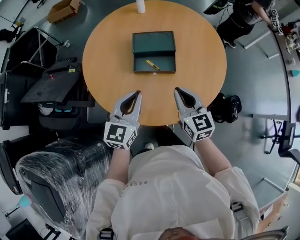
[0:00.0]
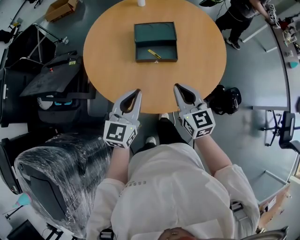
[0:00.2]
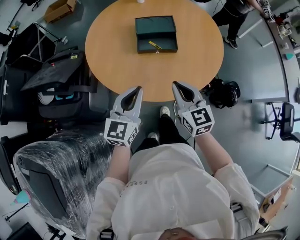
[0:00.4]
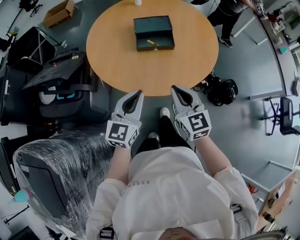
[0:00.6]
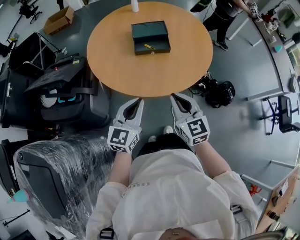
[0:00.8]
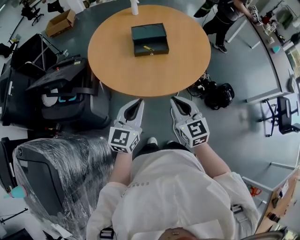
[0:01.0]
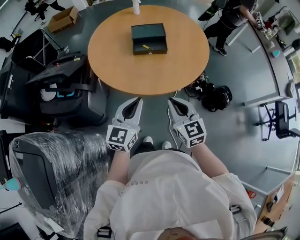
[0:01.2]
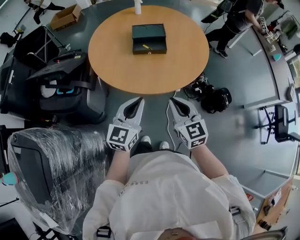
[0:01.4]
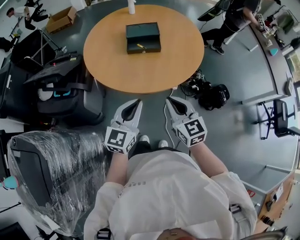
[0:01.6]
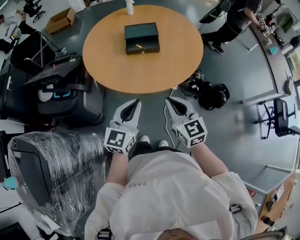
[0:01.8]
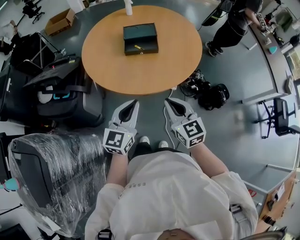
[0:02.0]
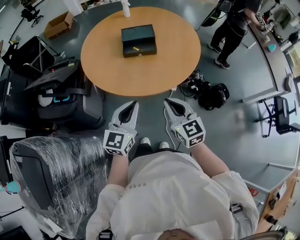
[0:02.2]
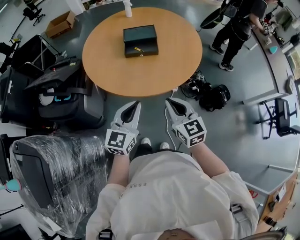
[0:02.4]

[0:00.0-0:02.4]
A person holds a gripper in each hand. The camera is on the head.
0:00.0 to 0:01.2: Both grippers travel together backward, about 25 cm.
0:01.2 to 0:02.4: The grippers make only small movements.

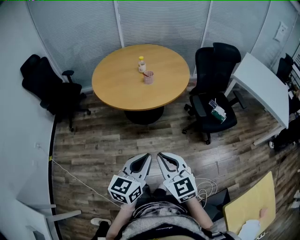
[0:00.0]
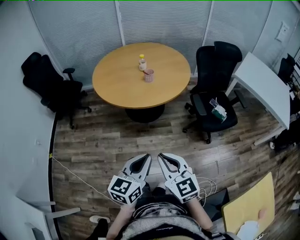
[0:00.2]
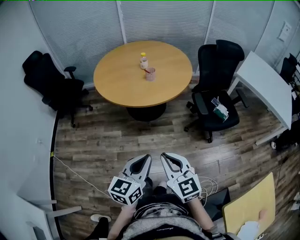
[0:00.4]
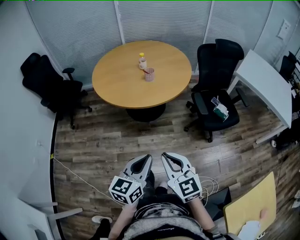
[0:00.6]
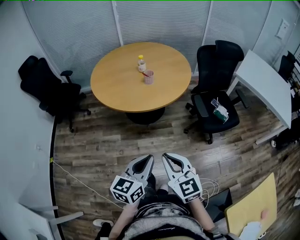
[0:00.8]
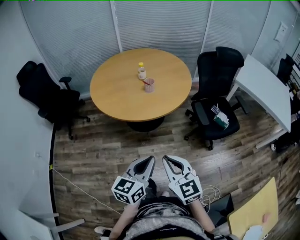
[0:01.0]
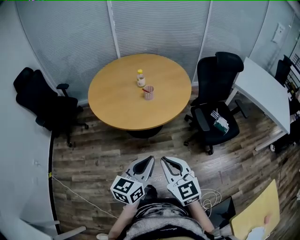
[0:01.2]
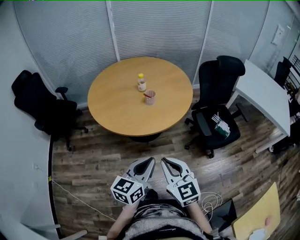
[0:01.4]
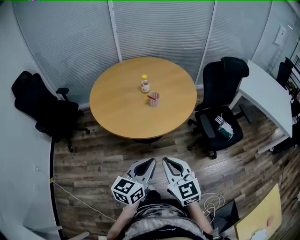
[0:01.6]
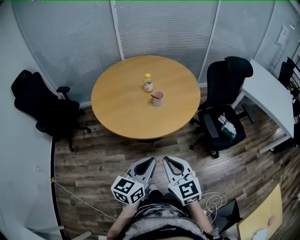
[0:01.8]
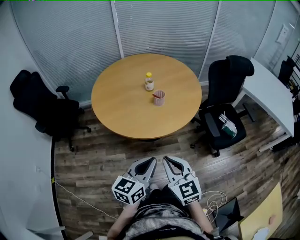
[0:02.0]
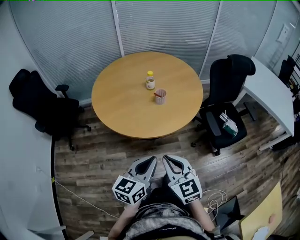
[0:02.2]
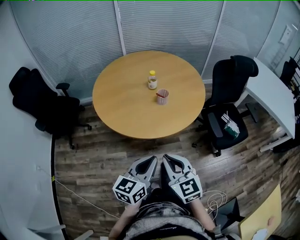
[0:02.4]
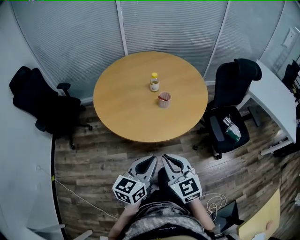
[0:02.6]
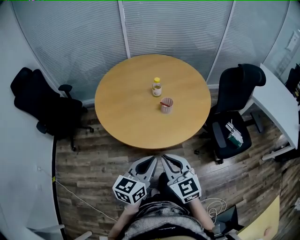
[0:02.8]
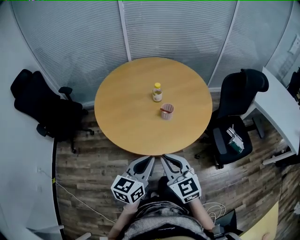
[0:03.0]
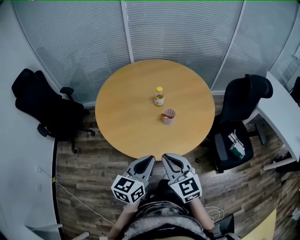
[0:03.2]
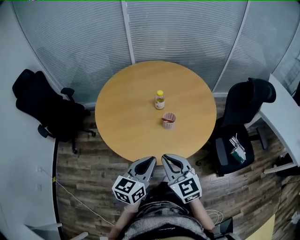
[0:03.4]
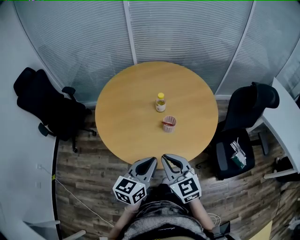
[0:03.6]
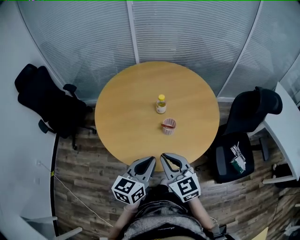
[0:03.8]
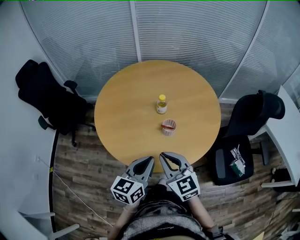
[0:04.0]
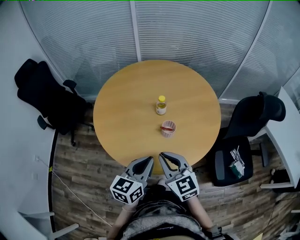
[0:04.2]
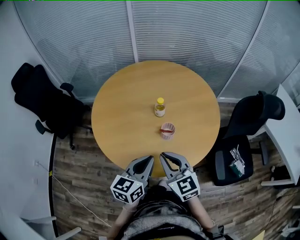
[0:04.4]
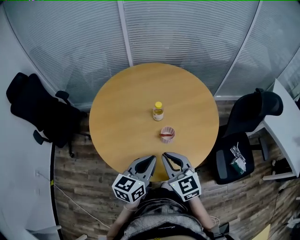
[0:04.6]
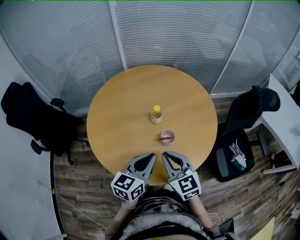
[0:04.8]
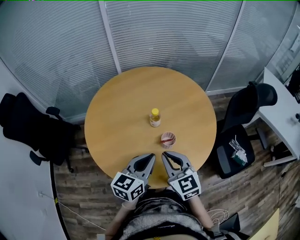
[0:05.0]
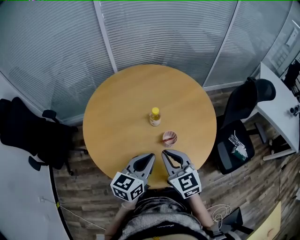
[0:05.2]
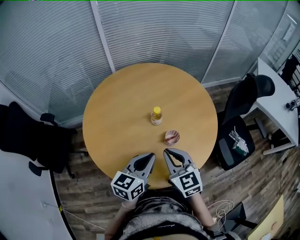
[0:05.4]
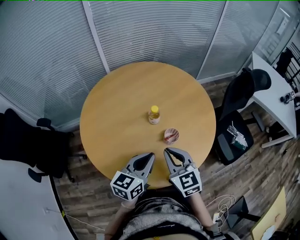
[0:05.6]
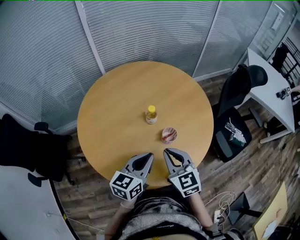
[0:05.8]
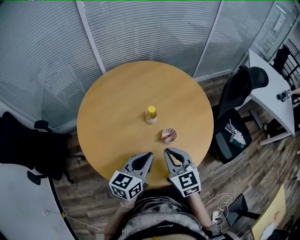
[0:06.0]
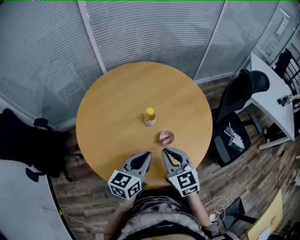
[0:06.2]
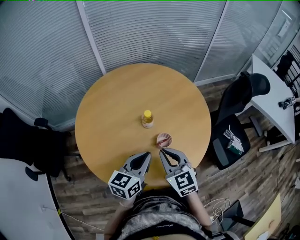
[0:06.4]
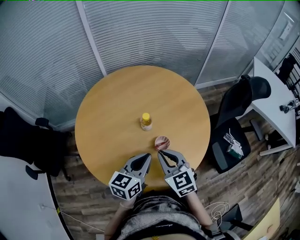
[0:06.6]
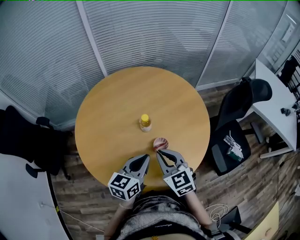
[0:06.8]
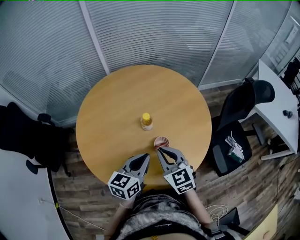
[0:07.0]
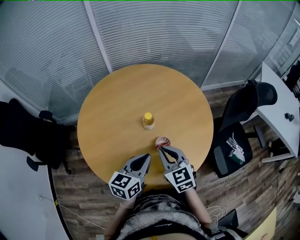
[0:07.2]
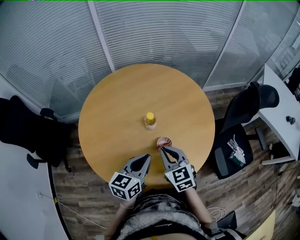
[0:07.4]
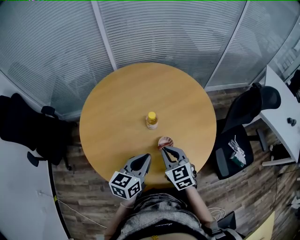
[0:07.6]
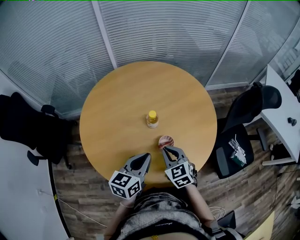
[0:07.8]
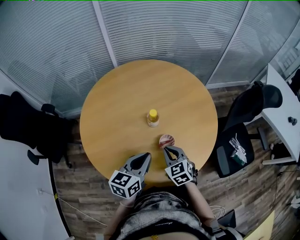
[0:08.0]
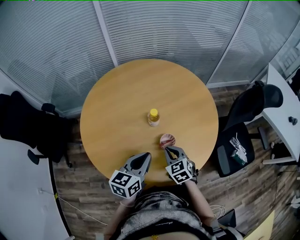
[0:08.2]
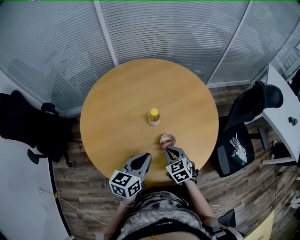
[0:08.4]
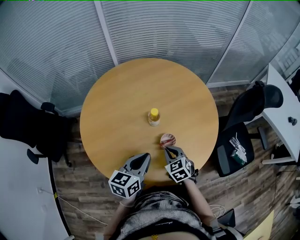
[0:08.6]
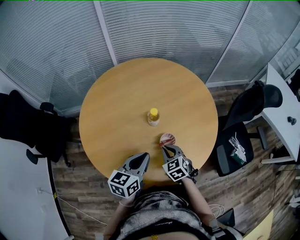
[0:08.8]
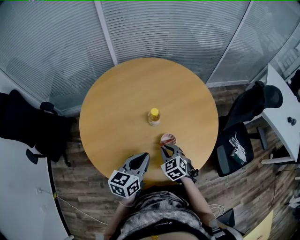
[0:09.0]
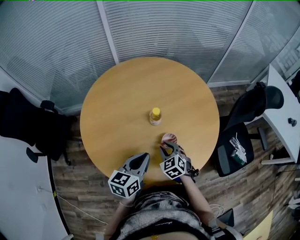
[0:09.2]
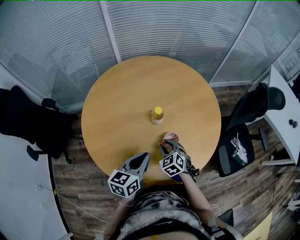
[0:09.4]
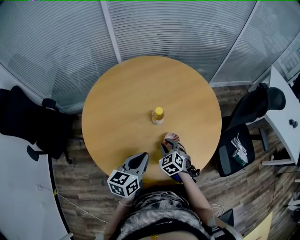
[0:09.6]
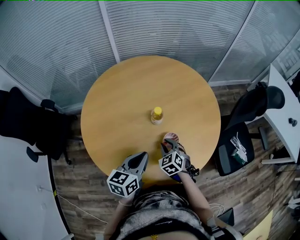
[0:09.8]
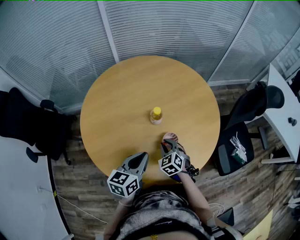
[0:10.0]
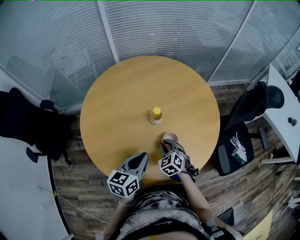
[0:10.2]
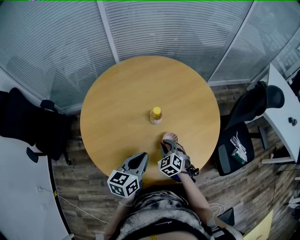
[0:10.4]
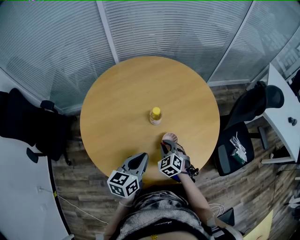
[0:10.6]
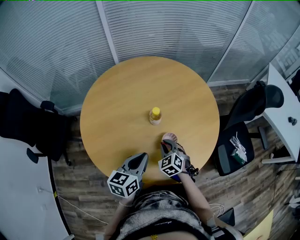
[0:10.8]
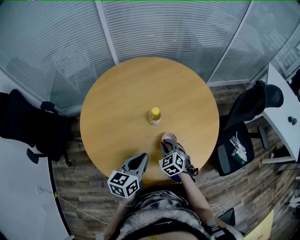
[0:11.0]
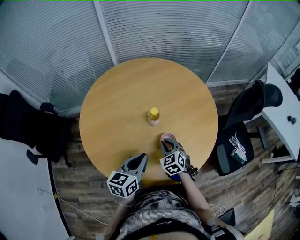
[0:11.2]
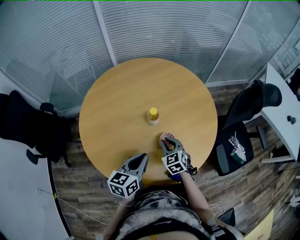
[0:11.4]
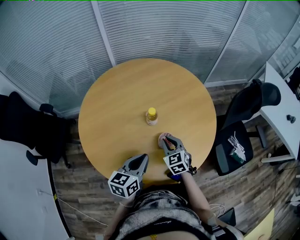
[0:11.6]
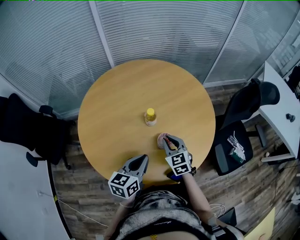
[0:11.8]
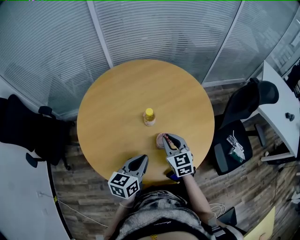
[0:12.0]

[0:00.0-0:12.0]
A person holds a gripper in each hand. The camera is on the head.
0:00.0 to 0:01.6: Both grippers travel together forward, some 20 cm.
0:01.6 to 0:03.0: The two grippers go roughly 20 cm forward and to the left.
0:03.0 to 0:04.4: Both grippers move forward, some 15 cm.
0:04.4 to 0:06.0: The right gripper ends up about 10 cm from where it was, and changes its angle by roughly 30 degrees. Meanwhile the left gripper changes place by some 10 cm, and changes its angle by some 20 degrees.
0:06.0 to 0:07.6: The left gripper ends up roughly 5 cm from where it was, while the right gripper moves forward, about 5 cm.
0:07.6 to 0:09.0: The right gripper travels downward by approximately 10 cm.
0:09.0 to 0:10.4: There are only small adjustments of the grippers.
0:10.4 to 0:12.0: The right gripper travels upward by roughly 10 cm, and turns by roughly 30 degrees.

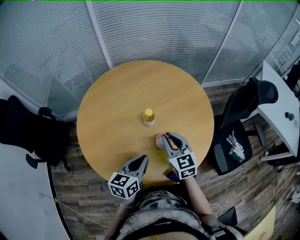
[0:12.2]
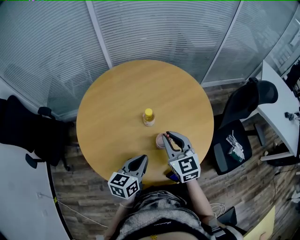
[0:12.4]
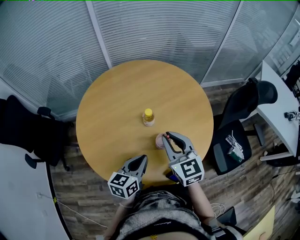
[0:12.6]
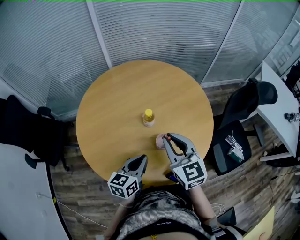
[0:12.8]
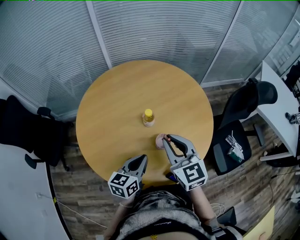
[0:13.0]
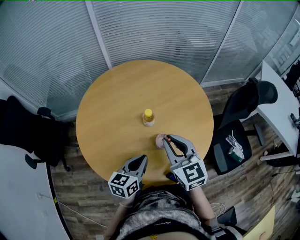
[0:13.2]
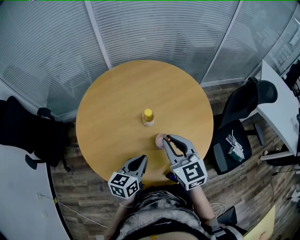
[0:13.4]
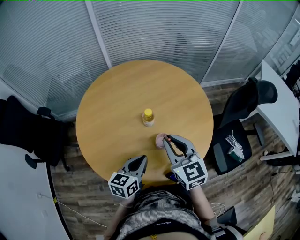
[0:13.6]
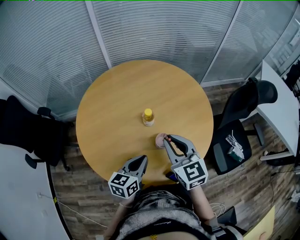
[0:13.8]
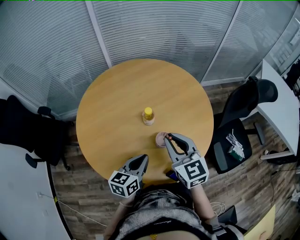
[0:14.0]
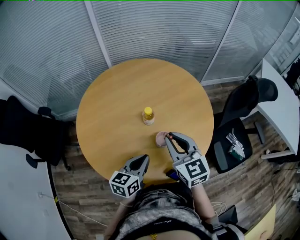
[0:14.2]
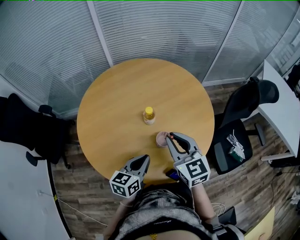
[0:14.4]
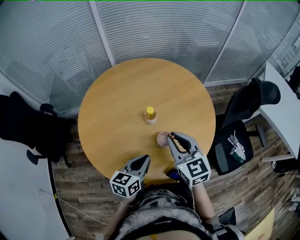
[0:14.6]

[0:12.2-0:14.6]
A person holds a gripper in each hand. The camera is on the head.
0:12.2 to 0:13.4: The right gripper is displaced upward by some 10 cm.
0:13.4 to 0:14.6: The grippers move only a little.

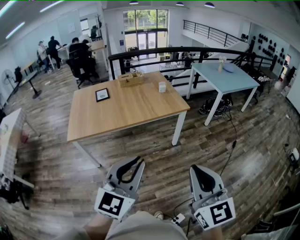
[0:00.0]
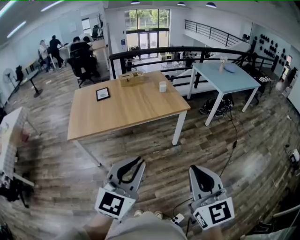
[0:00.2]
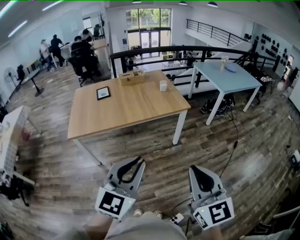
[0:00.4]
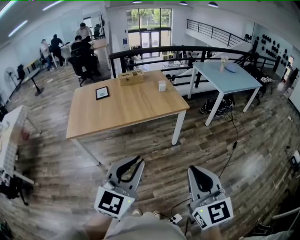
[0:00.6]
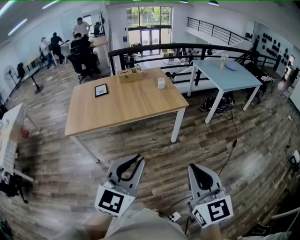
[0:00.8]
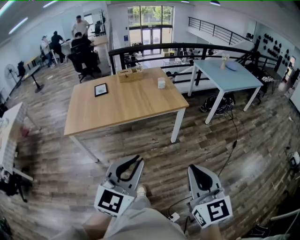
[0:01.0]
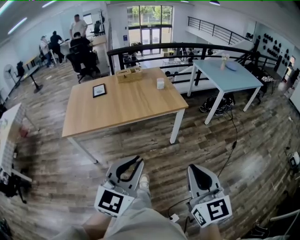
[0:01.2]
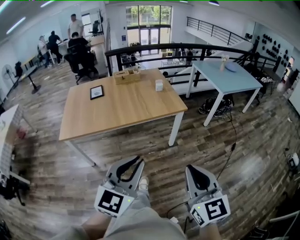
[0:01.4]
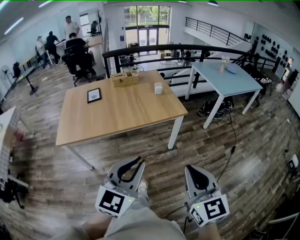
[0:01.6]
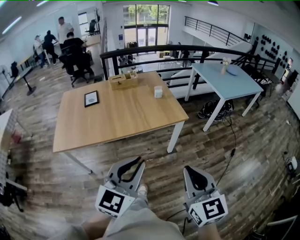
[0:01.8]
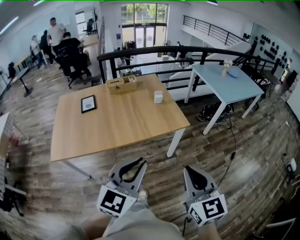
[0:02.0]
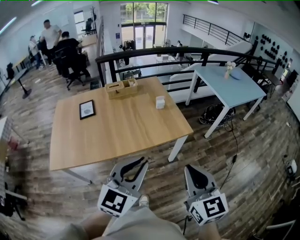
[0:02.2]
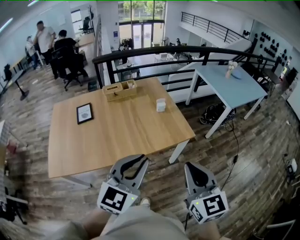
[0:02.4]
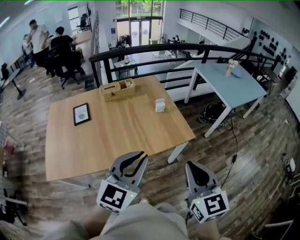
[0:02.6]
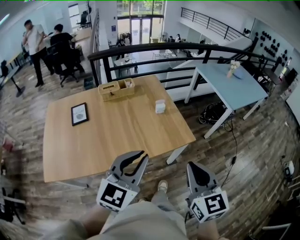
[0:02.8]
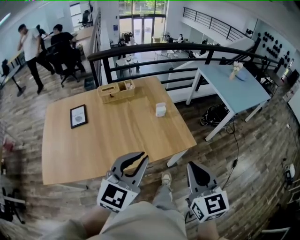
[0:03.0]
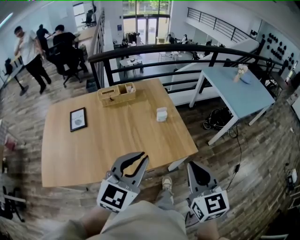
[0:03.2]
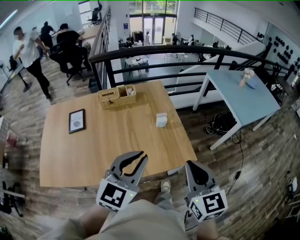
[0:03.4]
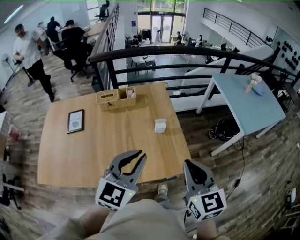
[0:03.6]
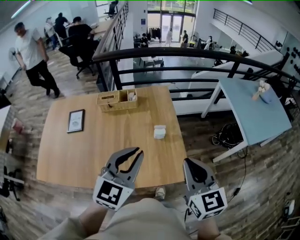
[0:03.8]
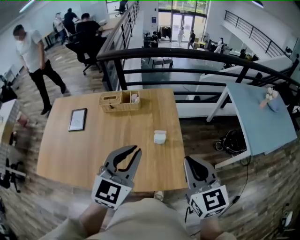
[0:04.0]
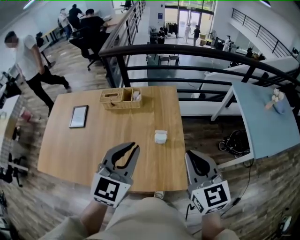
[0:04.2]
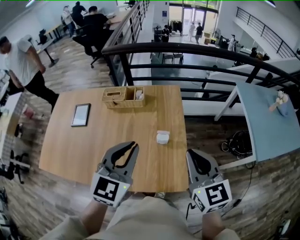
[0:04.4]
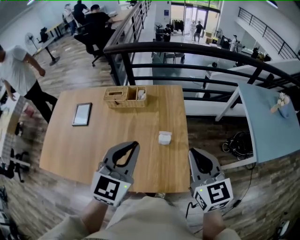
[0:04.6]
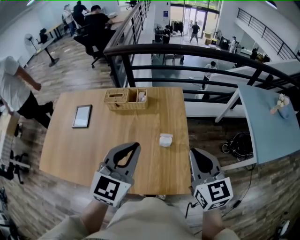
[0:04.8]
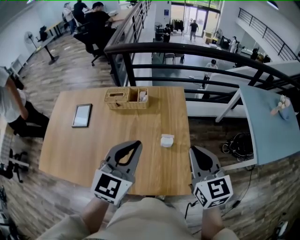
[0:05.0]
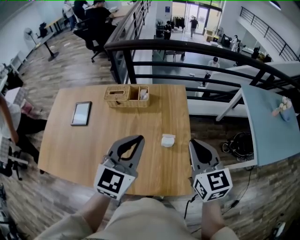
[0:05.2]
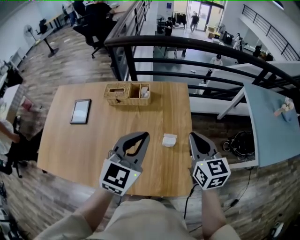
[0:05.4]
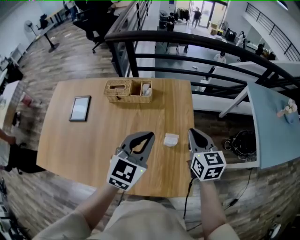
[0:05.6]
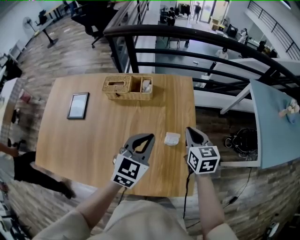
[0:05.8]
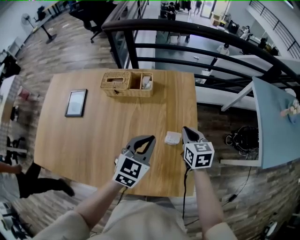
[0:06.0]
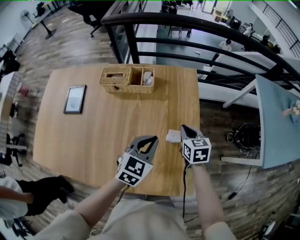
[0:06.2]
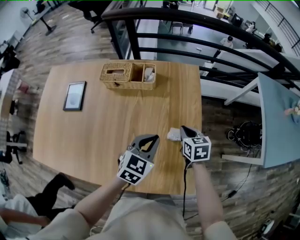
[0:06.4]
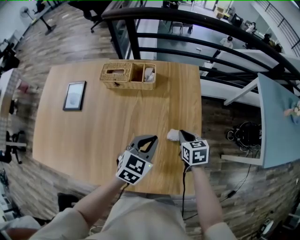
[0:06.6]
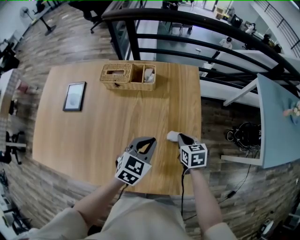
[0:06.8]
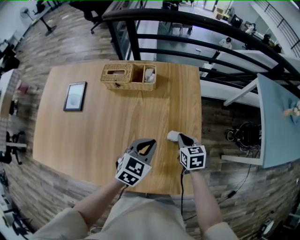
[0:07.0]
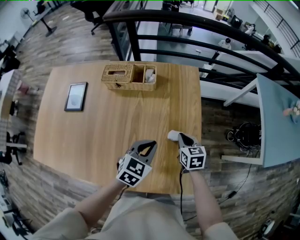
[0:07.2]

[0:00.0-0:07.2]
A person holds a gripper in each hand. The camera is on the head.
0:00.0 to 0:01.4: The two grippers go about 10 cm forward and to the right.
0:01.4 to 0:02.8: The two grippers travel together, forward, approximately 40 cm.
0:02.8 to 0:04.4: The left gripper changes place by some 35 cm, and swivels roughly 30 degrees, while the right gripper moves some 40 cm, and changes its angle by approximately 30 degrees.
0:04.4 to 0:05.8: The left gripper travels downward and forward by about 20 cm; the right gripper travels forward and downward by approximately 25 cm.
0:05.8 to 0:07.2: The grippers both shift downward by about 15 cm.
